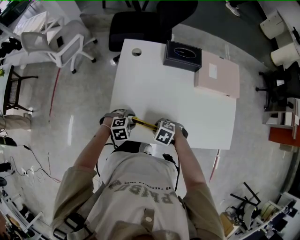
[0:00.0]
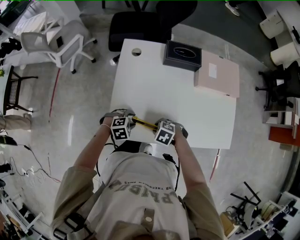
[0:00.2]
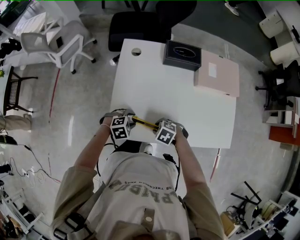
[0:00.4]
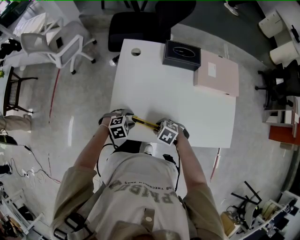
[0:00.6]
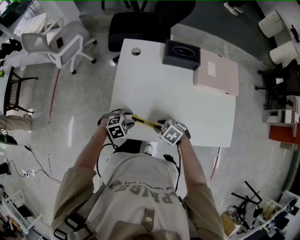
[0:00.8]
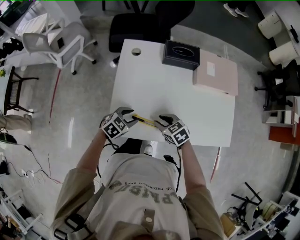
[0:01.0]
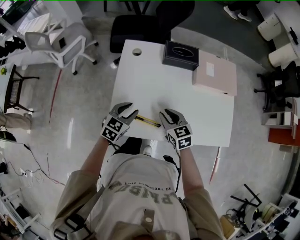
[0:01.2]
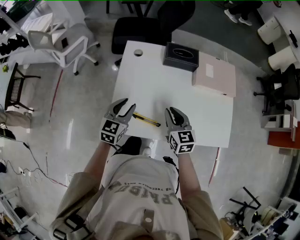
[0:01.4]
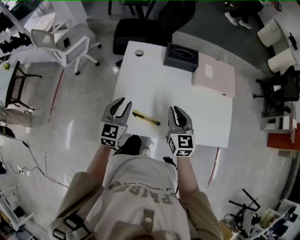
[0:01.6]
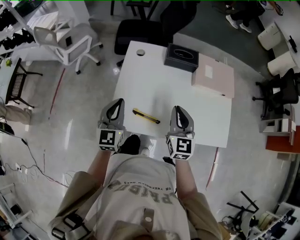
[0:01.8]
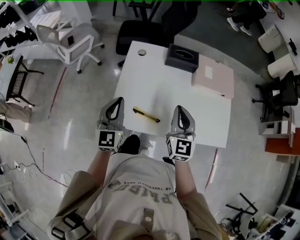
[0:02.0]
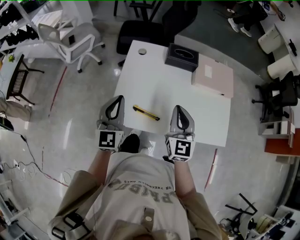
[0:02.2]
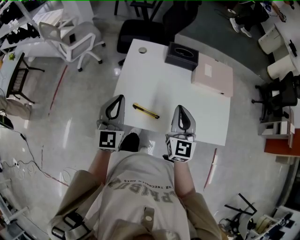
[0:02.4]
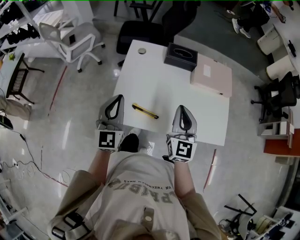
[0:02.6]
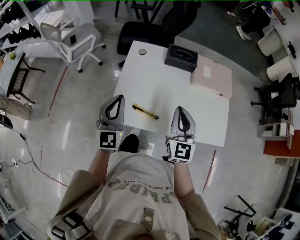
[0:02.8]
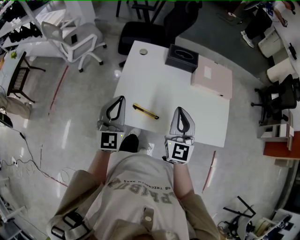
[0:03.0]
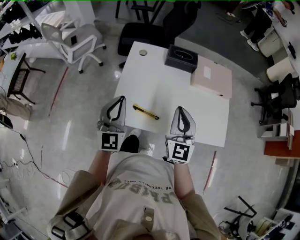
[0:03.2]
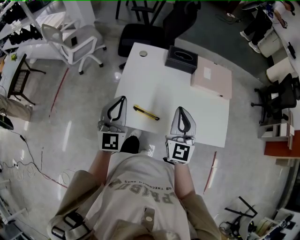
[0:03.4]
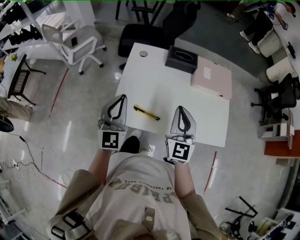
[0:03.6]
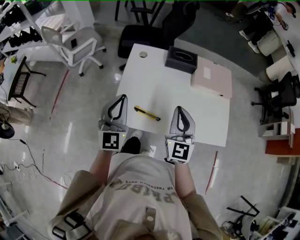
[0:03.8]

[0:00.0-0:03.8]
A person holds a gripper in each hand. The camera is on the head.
0:00.0 to 0:01.2: The two grippers go about 10 cm upward. The left gripper points its fingers some 30 degrees further upward; the right gripper points its fingers approximately 30 degrees further upward.
0:01.2 to 0:02.6: Both grippers move upward, some 20 cm. The left gripper tips its fingers upward by approximately 40 degrees, and closes up; the right gripper tips its fingers upward by about 30 degrees, and closes up.
0:02.6 to 0:03.8: There are only small adjustments of the grippers.

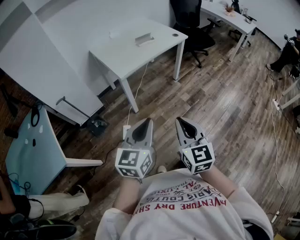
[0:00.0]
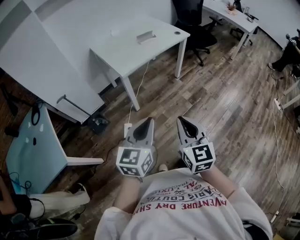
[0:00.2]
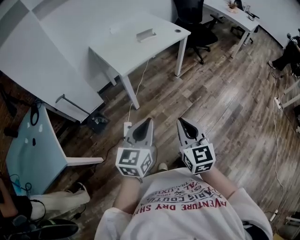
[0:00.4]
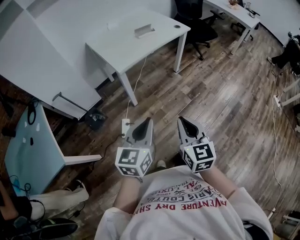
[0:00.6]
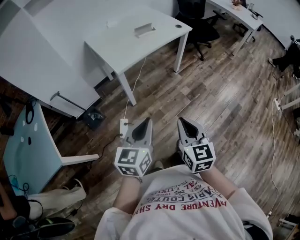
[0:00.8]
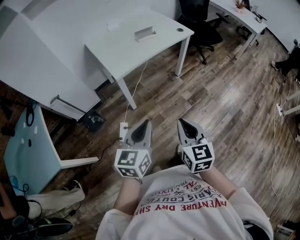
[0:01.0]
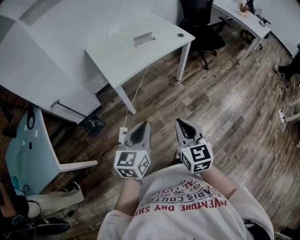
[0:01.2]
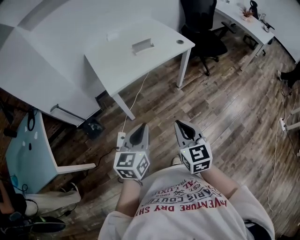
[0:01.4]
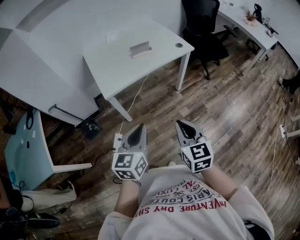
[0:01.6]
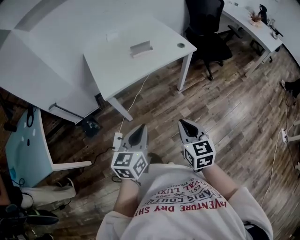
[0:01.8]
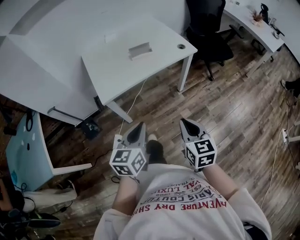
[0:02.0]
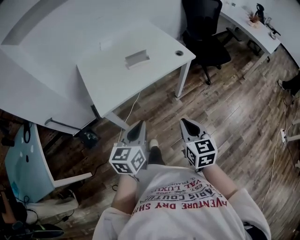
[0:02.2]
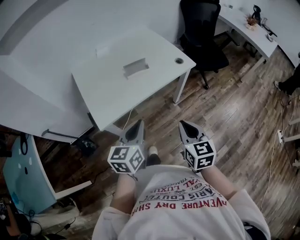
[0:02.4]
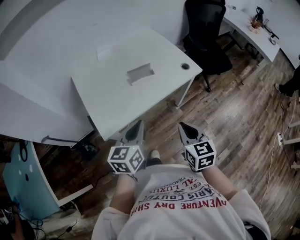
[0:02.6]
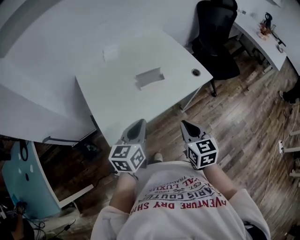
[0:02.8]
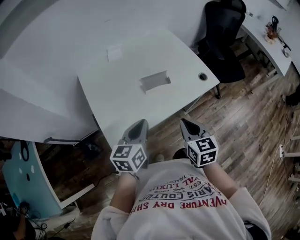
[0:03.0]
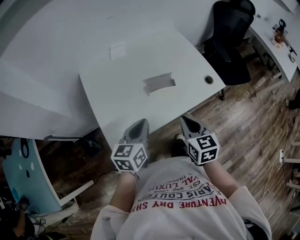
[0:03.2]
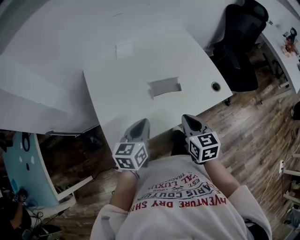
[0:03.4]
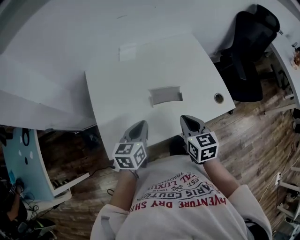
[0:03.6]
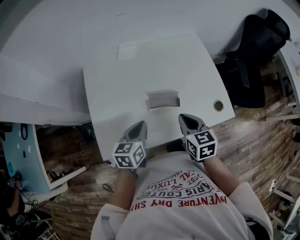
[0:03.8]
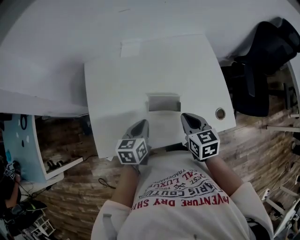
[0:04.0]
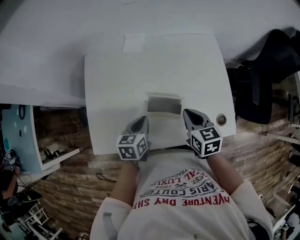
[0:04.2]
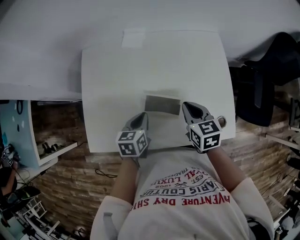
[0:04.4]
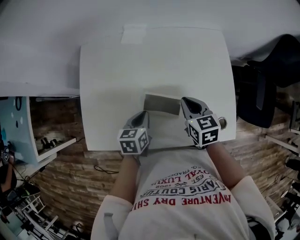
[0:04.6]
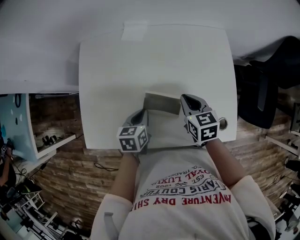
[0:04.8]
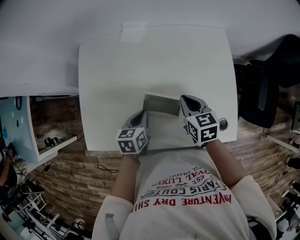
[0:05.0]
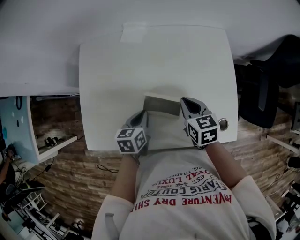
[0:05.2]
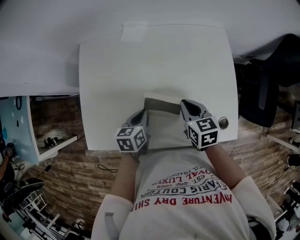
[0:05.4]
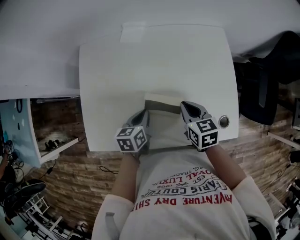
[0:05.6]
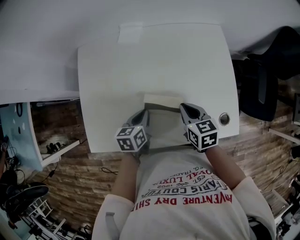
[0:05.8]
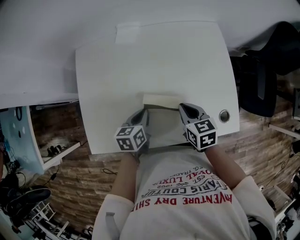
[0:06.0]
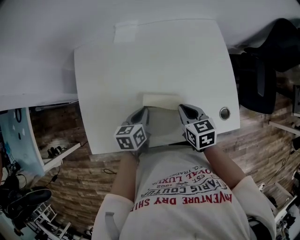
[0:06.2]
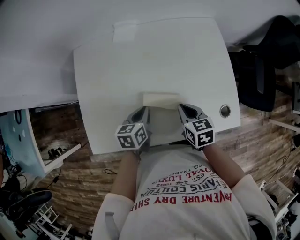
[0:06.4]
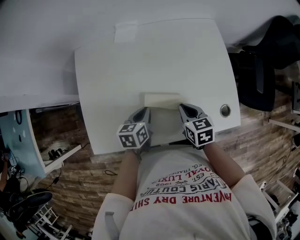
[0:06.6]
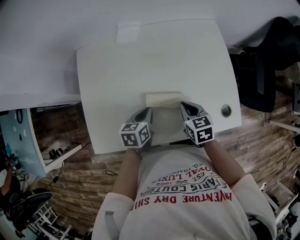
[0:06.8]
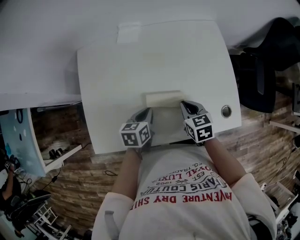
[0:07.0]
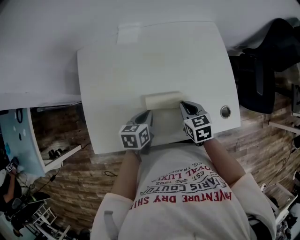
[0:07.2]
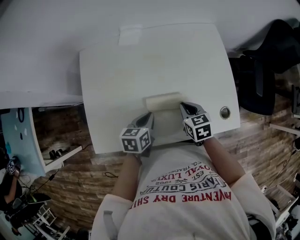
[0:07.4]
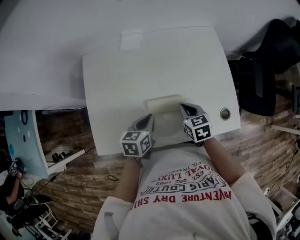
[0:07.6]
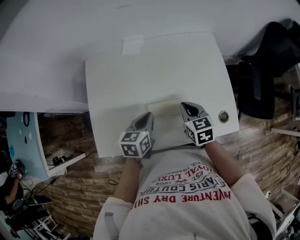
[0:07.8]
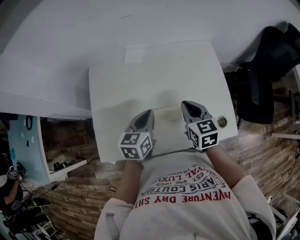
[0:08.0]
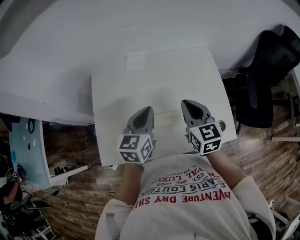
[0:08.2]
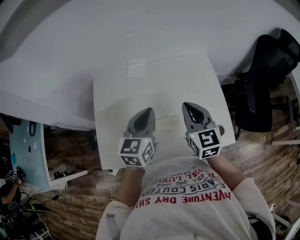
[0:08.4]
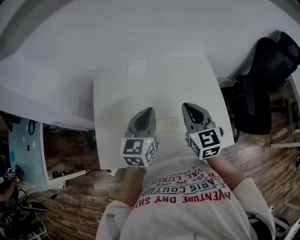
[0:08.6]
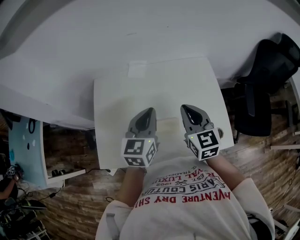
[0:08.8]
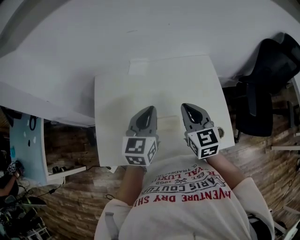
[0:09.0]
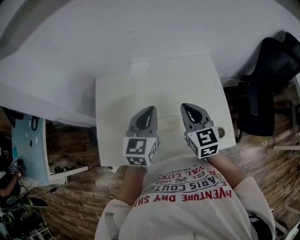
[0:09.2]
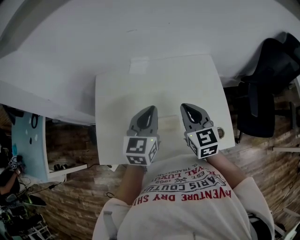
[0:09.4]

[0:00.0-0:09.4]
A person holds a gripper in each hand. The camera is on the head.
0:00.0 to 0:01.6: Both grippers travel together forward and to the right, roughly 25 cm.
0:01.6 to 0:03.2: The pair of grippers is taken forward, some 40 cm.
0:03.2 to 0:04.8: The right gripper changes place by some 30 cm, and changes its angle by some 30 degrees, while the left gripper changes place by approximately 25 cm, and rotates some 30 degrees.
0:04.8 to 0:06.2: The right gripper is displaced backward by some 5 cm.
0:06.2 to 0:07.8: The left gripper goes some 5 cm upward.
0:07.8 to 0:09.4: Both grippers move upward, approximately 15 cm. The left gripper changes its angle by roughly 30 degrees, while the right gripper turns by approximately 20 degrees.

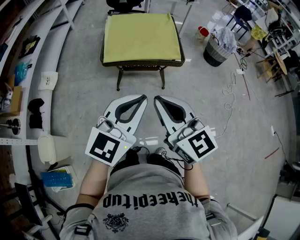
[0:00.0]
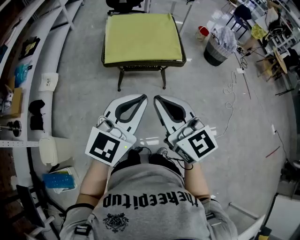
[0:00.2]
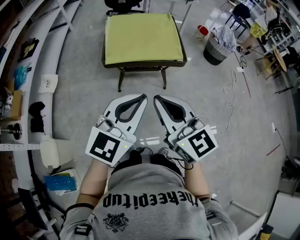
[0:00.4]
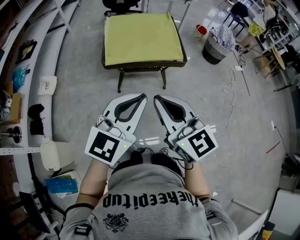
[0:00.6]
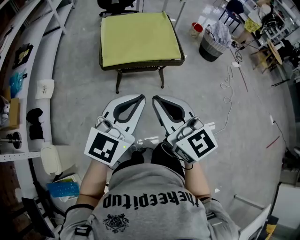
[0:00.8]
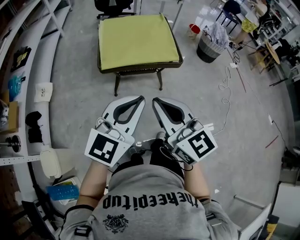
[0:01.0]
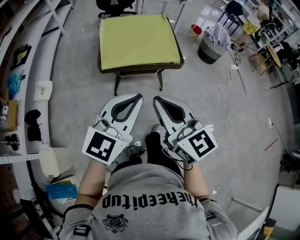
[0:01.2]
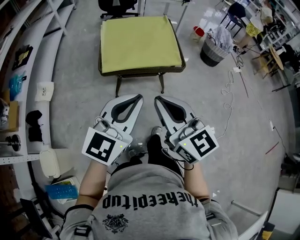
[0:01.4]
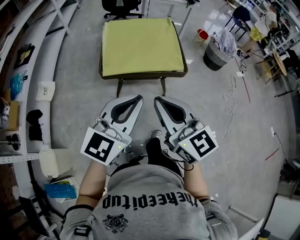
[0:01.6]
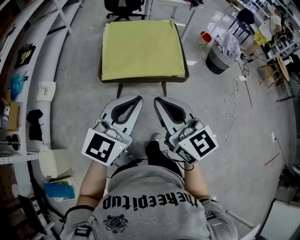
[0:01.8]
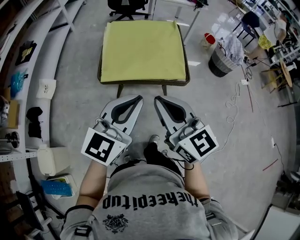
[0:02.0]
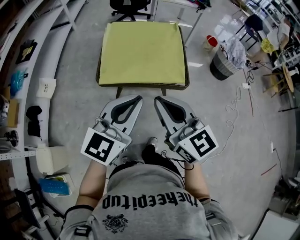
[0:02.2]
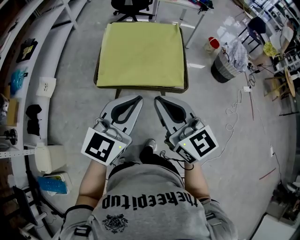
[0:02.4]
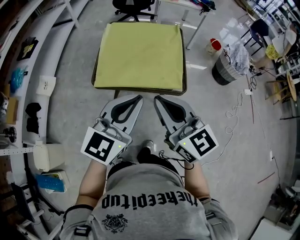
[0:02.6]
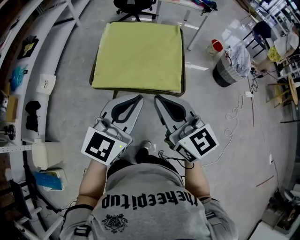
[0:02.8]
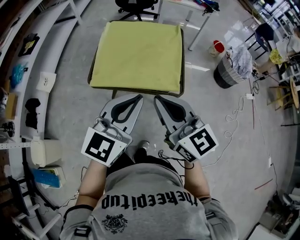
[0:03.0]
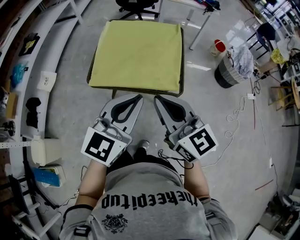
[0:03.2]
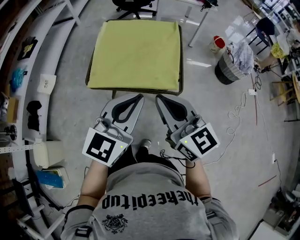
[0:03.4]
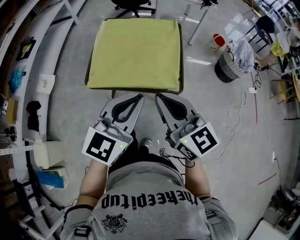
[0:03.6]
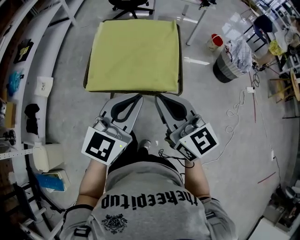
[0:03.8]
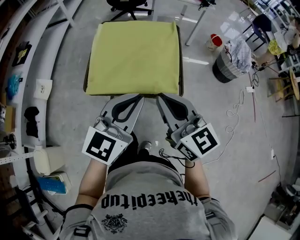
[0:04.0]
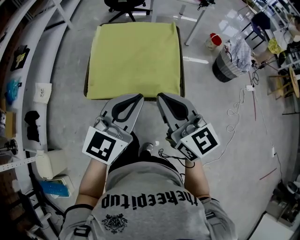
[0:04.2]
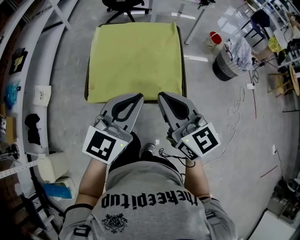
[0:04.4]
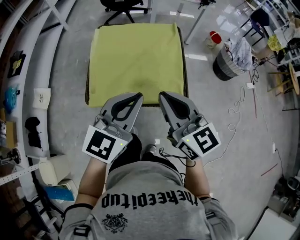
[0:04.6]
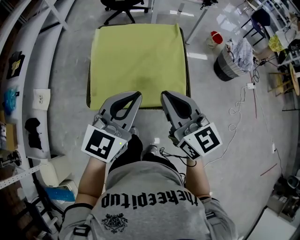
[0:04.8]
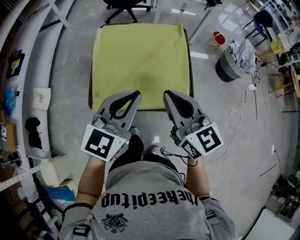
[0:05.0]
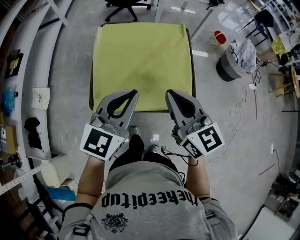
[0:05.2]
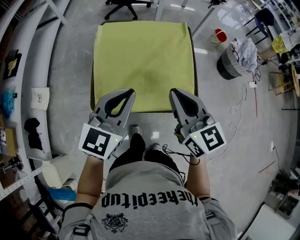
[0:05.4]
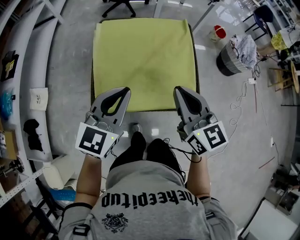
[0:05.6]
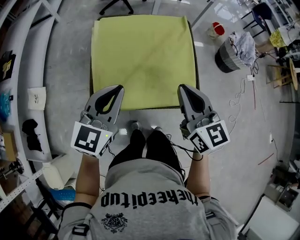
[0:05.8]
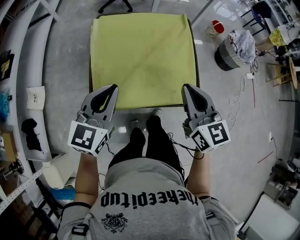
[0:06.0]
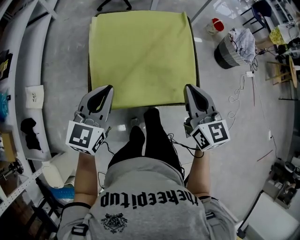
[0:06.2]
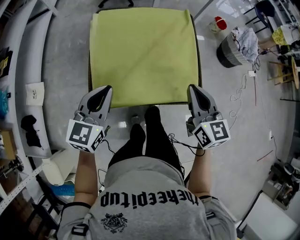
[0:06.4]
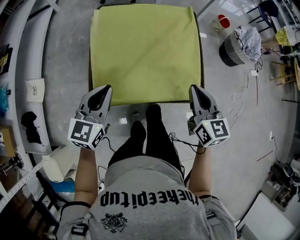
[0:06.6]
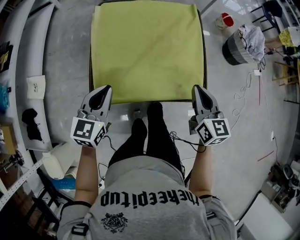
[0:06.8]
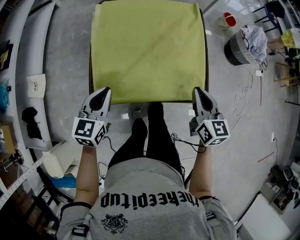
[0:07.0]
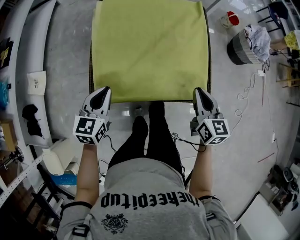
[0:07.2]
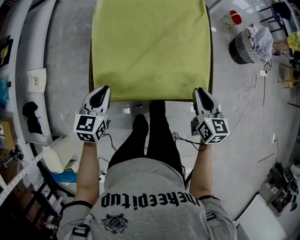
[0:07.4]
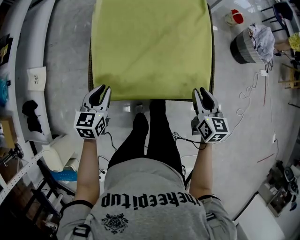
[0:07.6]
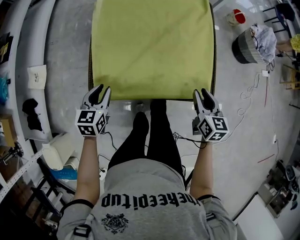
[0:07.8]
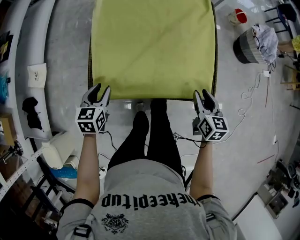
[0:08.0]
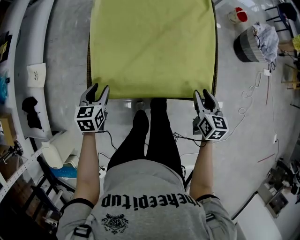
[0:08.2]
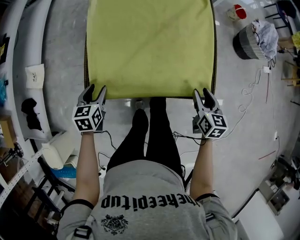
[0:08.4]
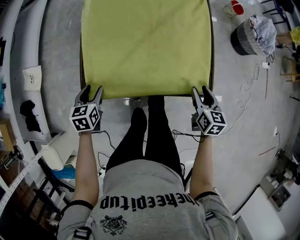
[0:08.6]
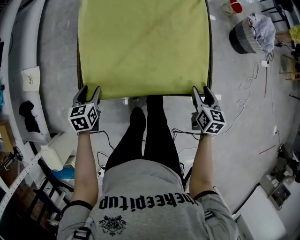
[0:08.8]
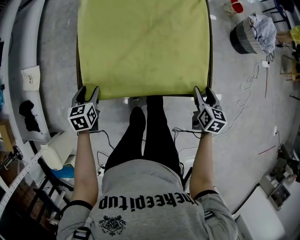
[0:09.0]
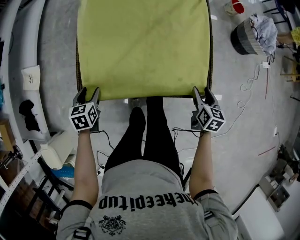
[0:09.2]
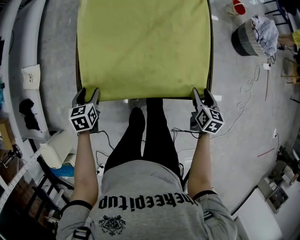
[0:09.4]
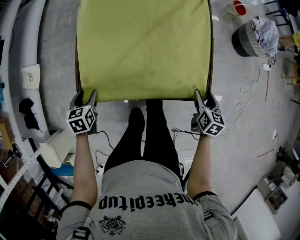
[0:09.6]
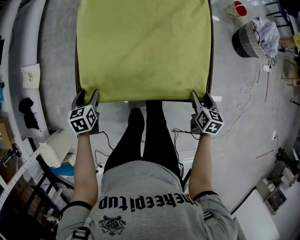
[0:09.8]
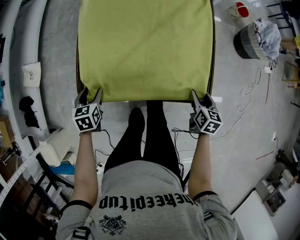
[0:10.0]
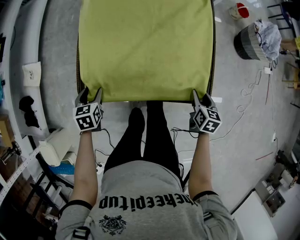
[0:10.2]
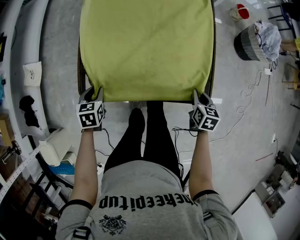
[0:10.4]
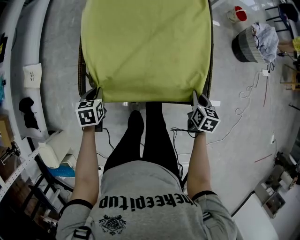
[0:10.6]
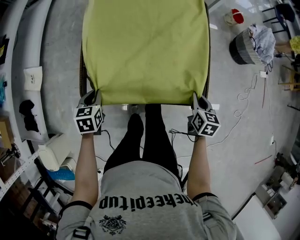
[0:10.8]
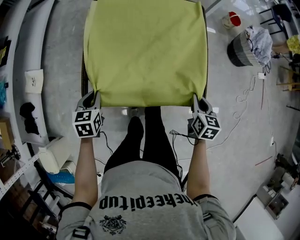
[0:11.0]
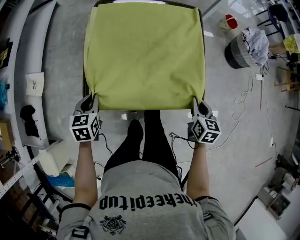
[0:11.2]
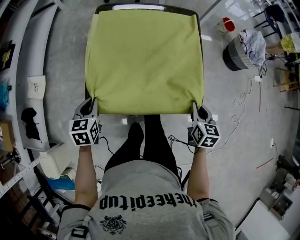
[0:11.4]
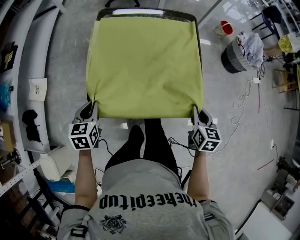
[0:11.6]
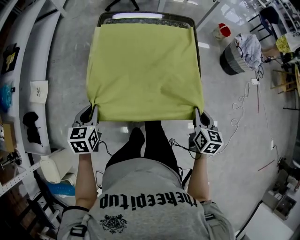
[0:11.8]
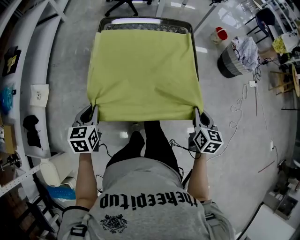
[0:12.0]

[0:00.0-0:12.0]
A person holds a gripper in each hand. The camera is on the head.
0:00.0 to 0:01.6: The two grippers go about 10 cm forward.
0:01.6 to 0:03.0: Both grippers travel together forward and to the right, approximately 20 cm.
0:03.0 to 0:04.4: Both grippers travel together forward, about 10 cm.
0:04.4 to 0:06.0: The left gripper travels to the left, forward and downward by approximately 20 cm; the right gripper travels forward and downward by some 15 cm.
0:06.0 to 0:07.6: The left gripper heads downward, covering approximately 20 cm, and swivels approximately 30 degrees. The right gripper moves downward and to the right, approximately 20 cm, changes its angle by approximately 20 degrees, and opens.
0:07.6 to 0:09.0: The right gripper travels downward and to the right by approximately 15 cm, and opens its fingers. Meanwhile the left gripper is displaced downward by some 10 cm, changes its angle by some 20 degrees, and opens up.
0:09.0 to 0:10.4: The left gripper closes its fingers; the right gripper closes its fingers.
0:10.4 to 0:12.0: The grippers both shift upward by about 15 cm. The left gripper closes its fingers.
